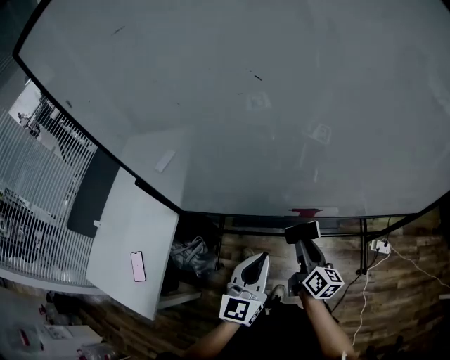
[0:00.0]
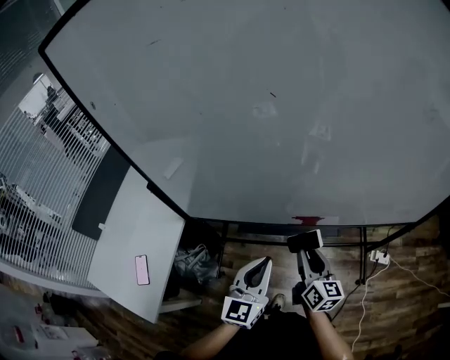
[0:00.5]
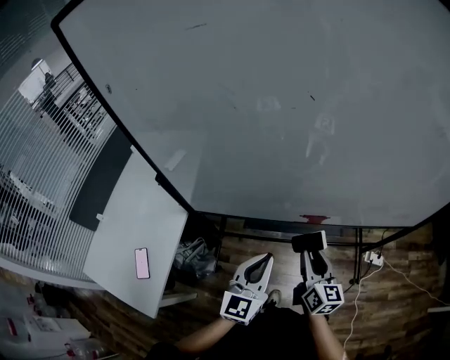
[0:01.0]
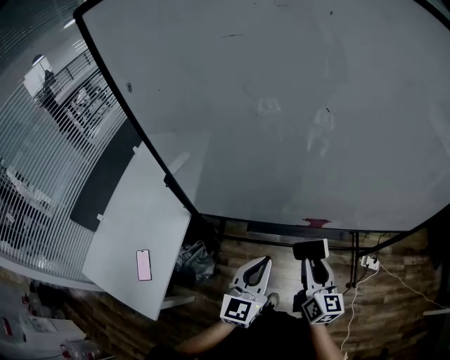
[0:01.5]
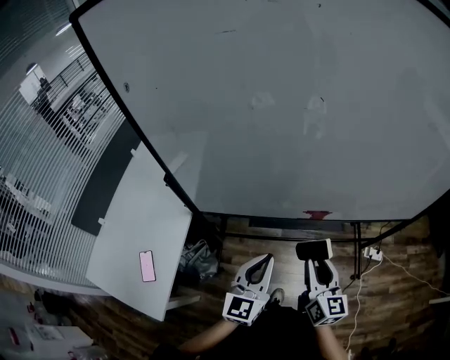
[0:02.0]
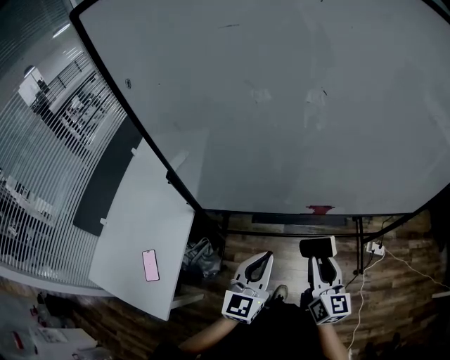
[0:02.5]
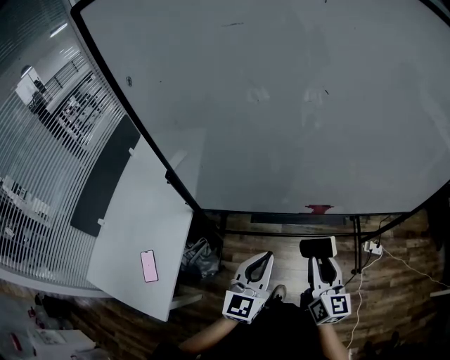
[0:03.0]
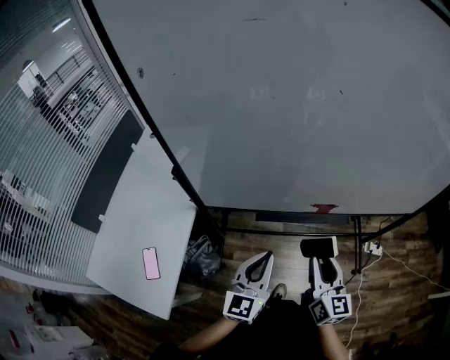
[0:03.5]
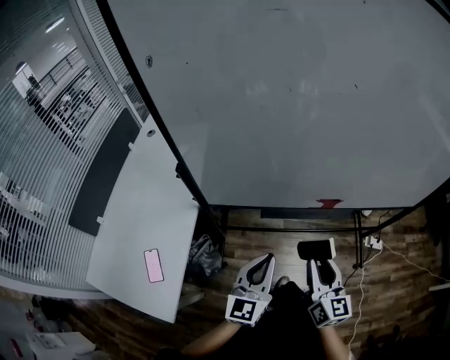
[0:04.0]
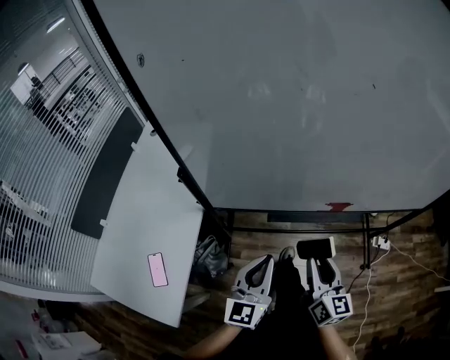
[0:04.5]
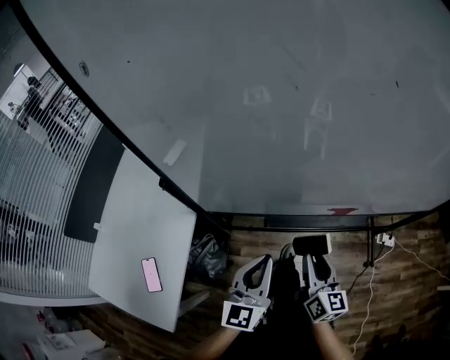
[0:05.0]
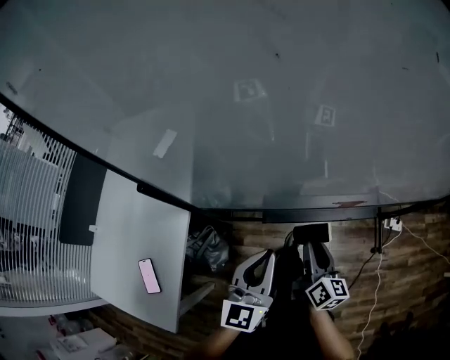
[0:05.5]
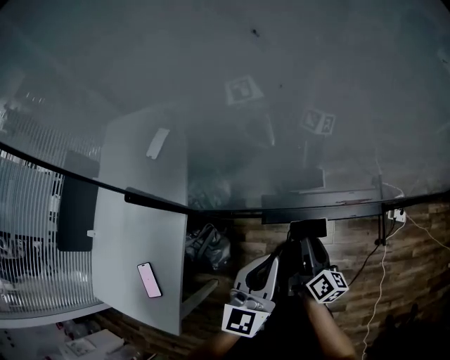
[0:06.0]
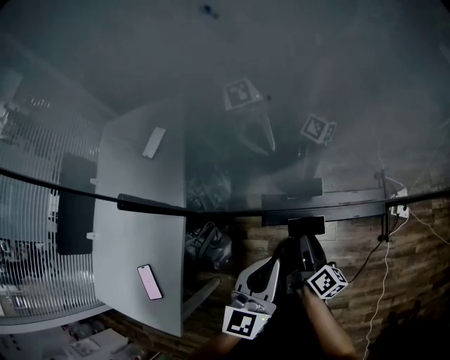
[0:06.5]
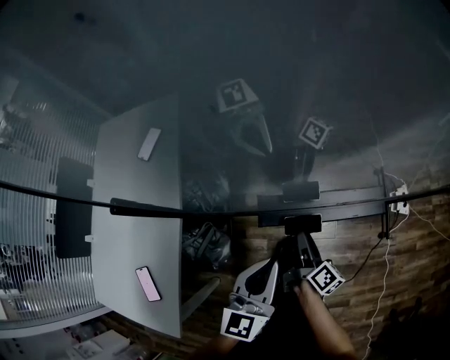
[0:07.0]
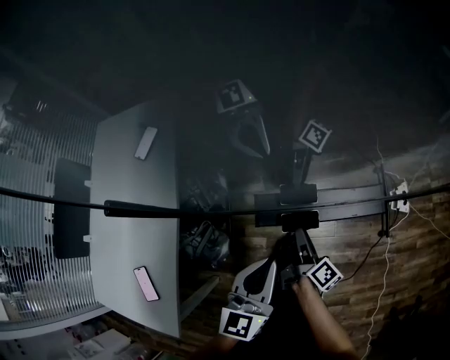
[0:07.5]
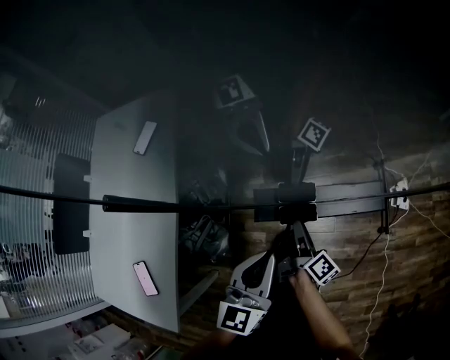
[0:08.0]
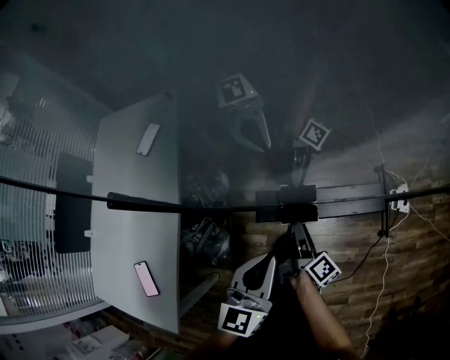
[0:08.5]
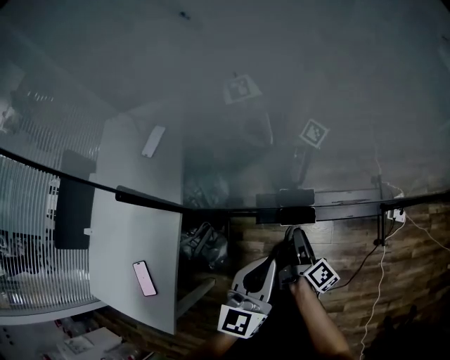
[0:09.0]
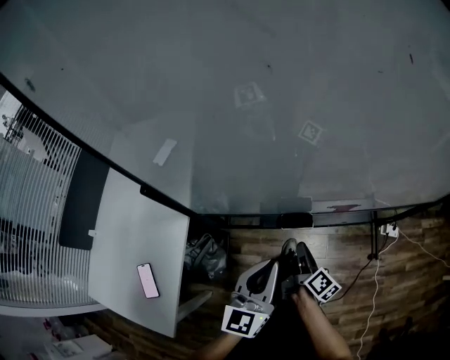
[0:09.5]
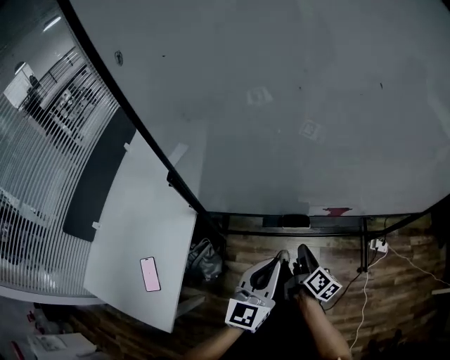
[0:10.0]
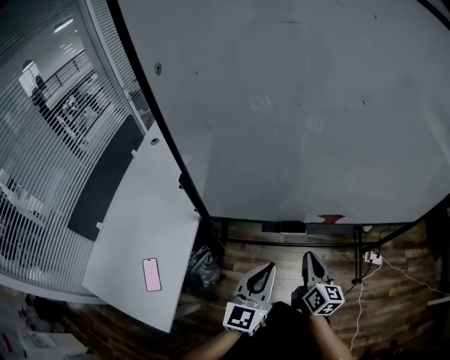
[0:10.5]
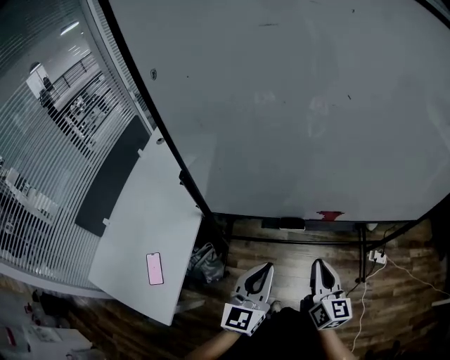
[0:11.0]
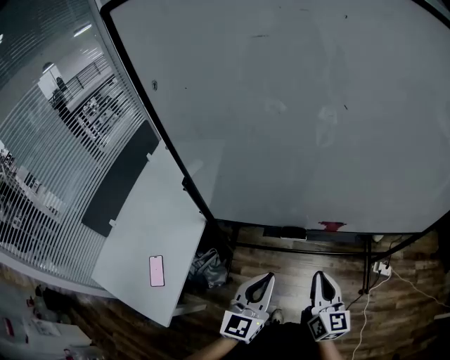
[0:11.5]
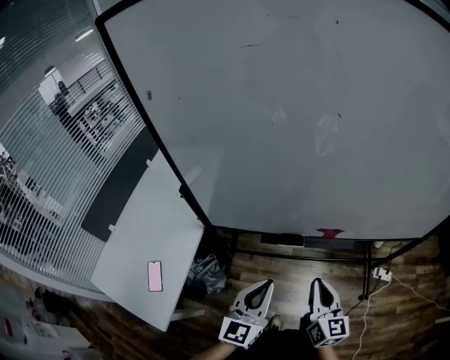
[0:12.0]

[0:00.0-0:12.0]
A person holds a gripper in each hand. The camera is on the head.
0:00.0 to 0:02.0: The right gripper travels upward and backward by approximately 15 cm, and rotates about 30 degrees; the left gripper heads to the left, covering some 5 cm.
0:02.0 to 0:04.0: Both grippers travel together to the left, roughly 5 cm.
0:04.0 to 0:06.0: The left gripper travels forward and downward by some 10 cm. The right gripper moves downward and forward, roughly 25 cm, and swivels approximately 40 degrees.
0:06.0 to 0:08.0: The right gripper moves downward, approximately 5 cm, and rotates about 20 degrees.
0:08.0 to 0:10.0: Both grippers travel together upward and backward, approximately 10 cm. The right gripper swivels roughly 20 degrees, and closes its fingers.
0:10.0 to 0:12.0: The left gripper shifts by approximately 5 cm; the right gripper travels upward and backward by roughly 15 cm, and turns by approximately 40 degrees.

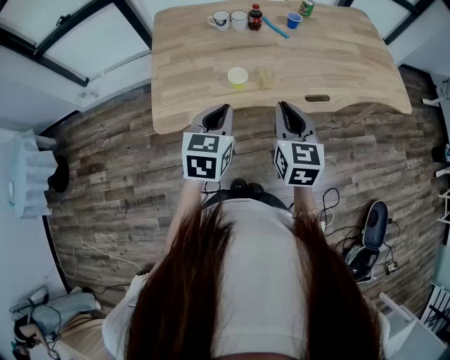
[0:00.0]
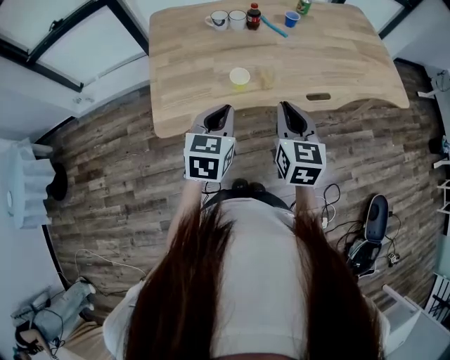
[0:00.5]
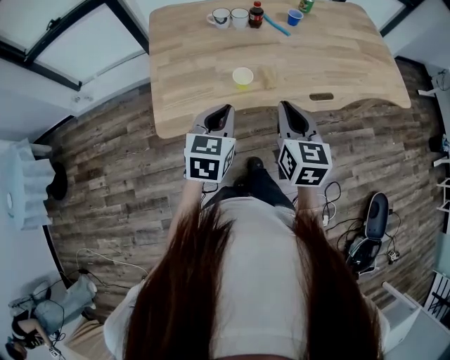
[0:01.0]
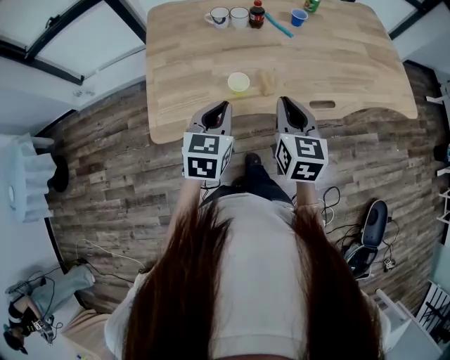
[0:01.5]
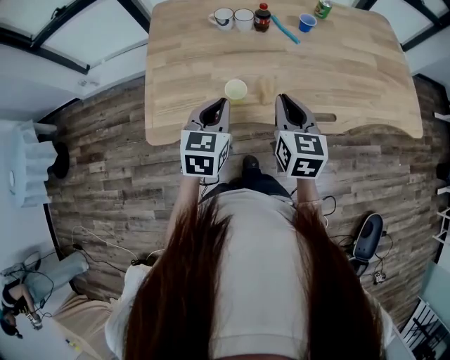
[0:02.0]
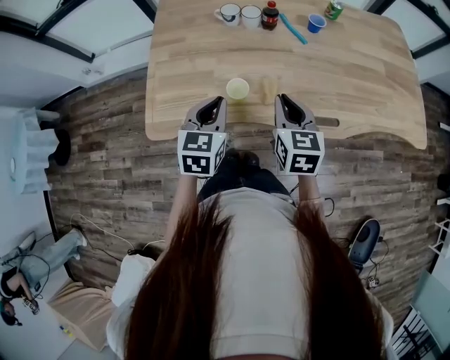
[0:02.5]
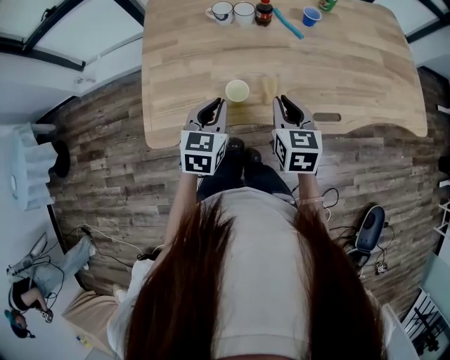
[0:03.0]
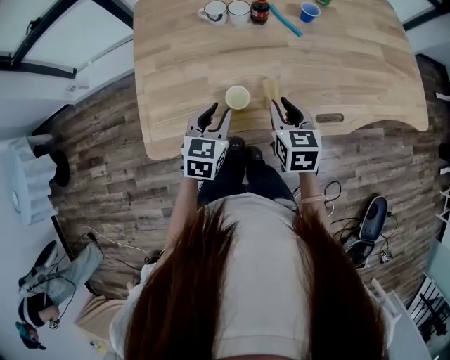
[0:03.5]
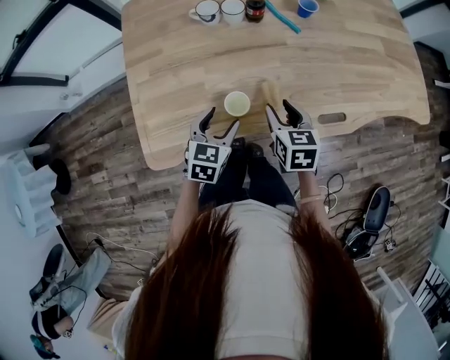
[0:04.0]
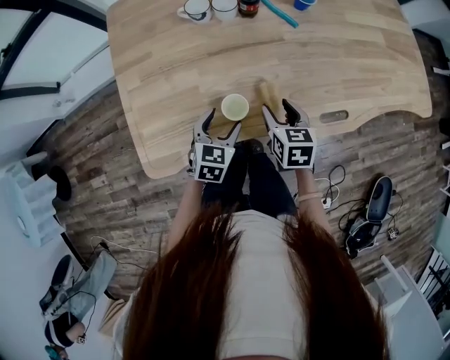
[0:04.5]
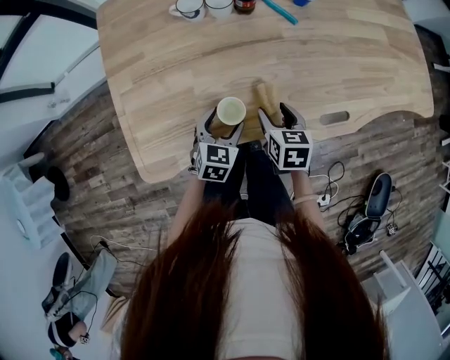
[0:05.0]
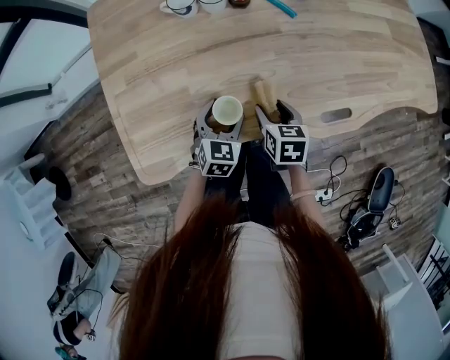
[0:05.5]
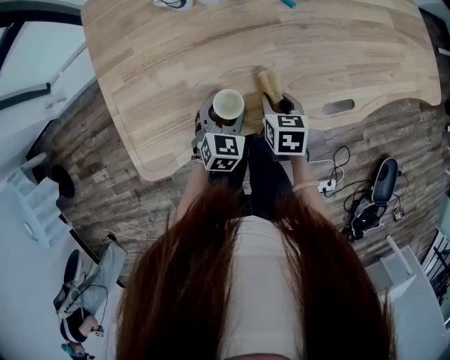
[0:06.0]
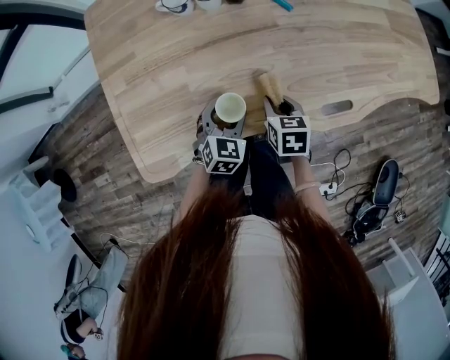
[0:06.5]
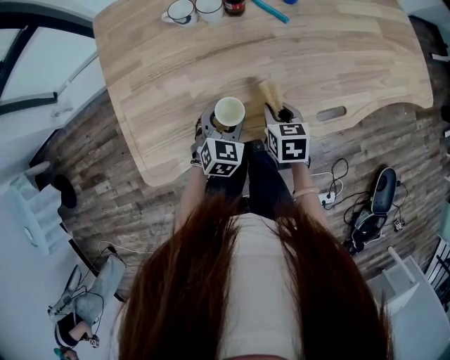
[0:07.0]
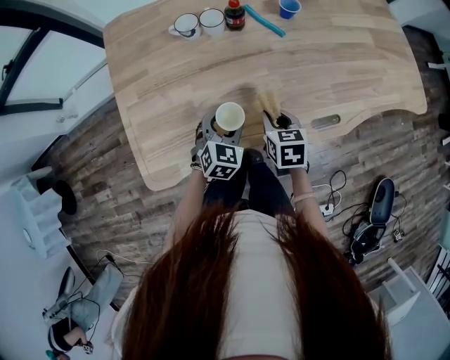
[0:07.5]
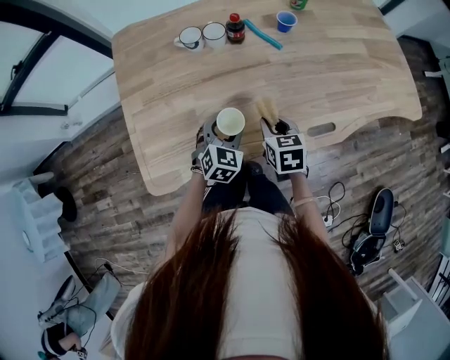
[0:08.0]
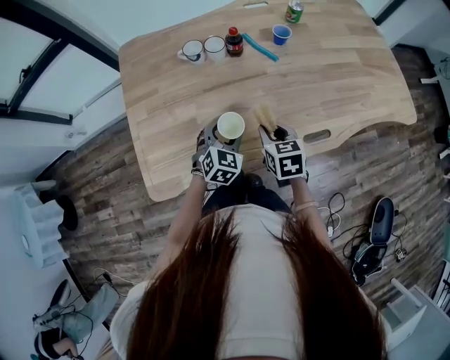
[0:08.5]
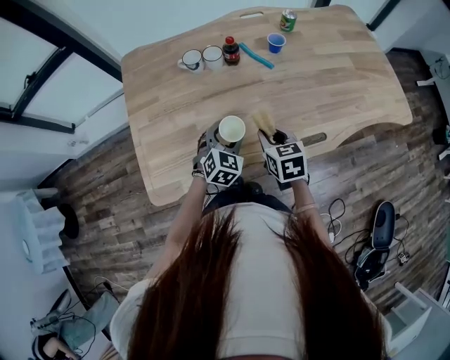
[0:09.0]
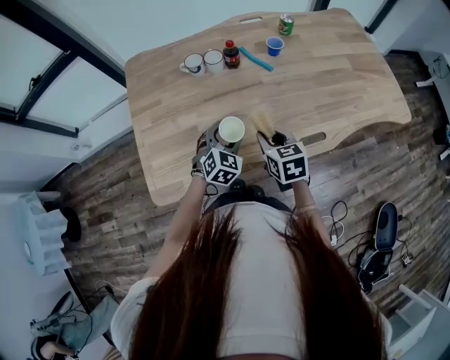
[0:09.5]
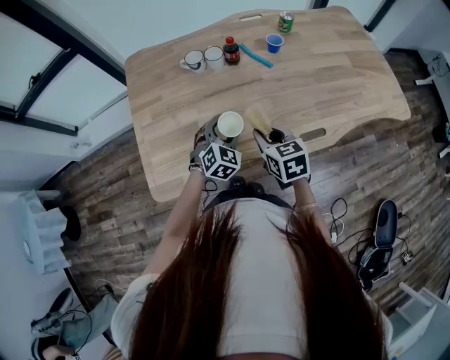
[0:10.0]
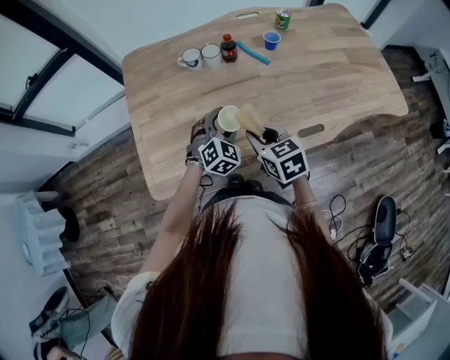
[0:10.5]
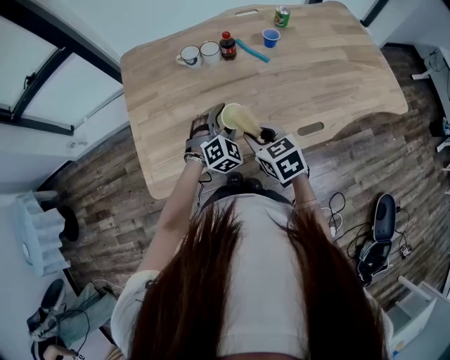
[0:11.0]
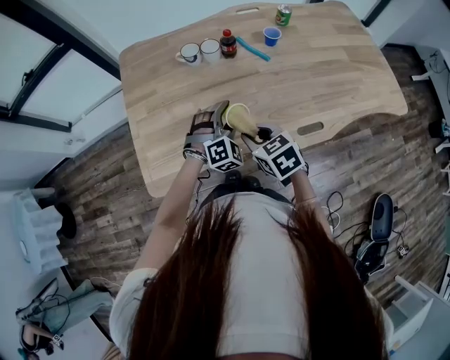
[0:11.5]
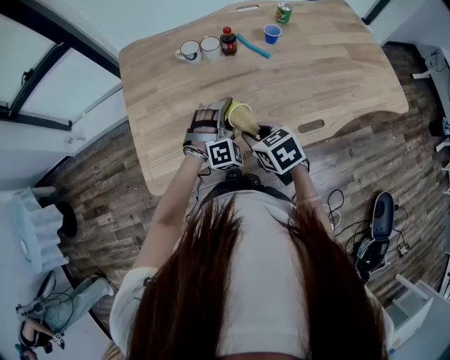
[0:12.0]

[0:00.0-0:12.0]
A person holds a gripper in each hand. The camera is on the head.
0:00.0 to 0:02.0: The grippers both shift forward by roughly 10 cm.
0:02.0 to 0:04.0: Both grippers travel together downward and forward, approximately 15 cm. The right gripper opens, while the left gripper opens up.
0:04.0 to 0:06.0: Both grippers travel together downward, some 10 cm.
0:06.0 to 0:08.0: Both grippers travel together upward, roughly 10 cm.
0:08.0 to 0:10.0: The right gripper heads upward, covering some 5 cm.
0:10.0 to 0:12.0: The left gripper turns by some 40 degrees.

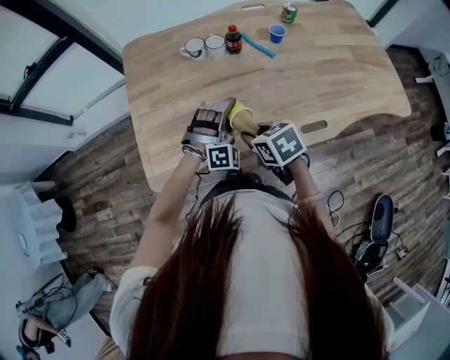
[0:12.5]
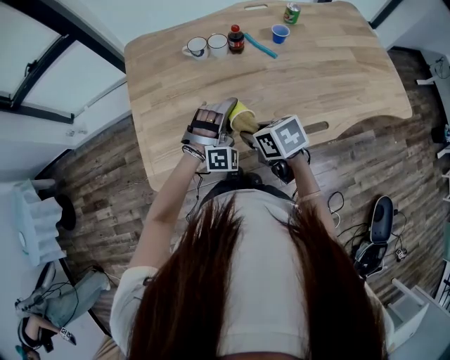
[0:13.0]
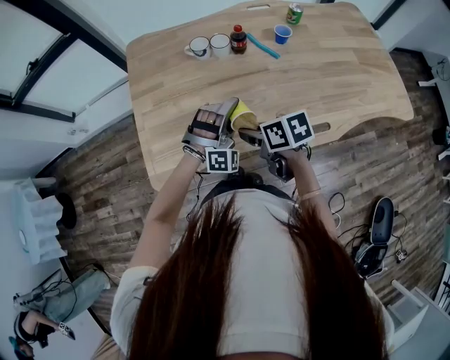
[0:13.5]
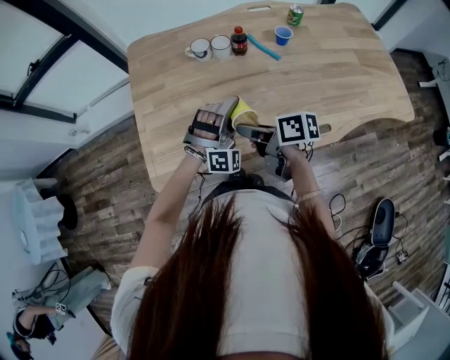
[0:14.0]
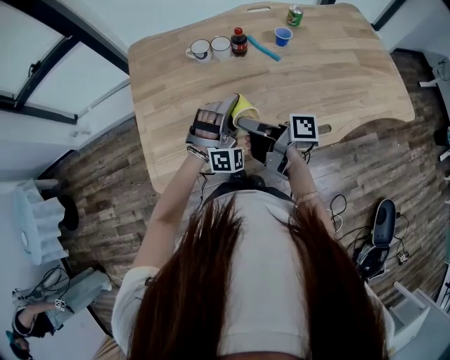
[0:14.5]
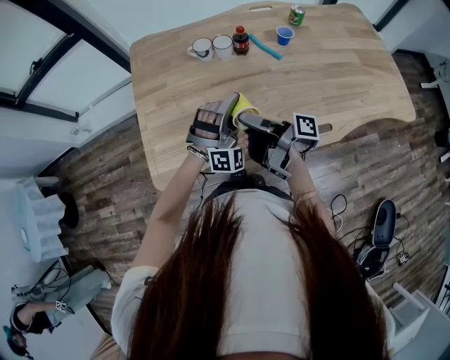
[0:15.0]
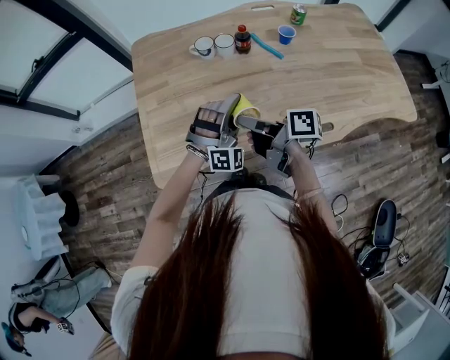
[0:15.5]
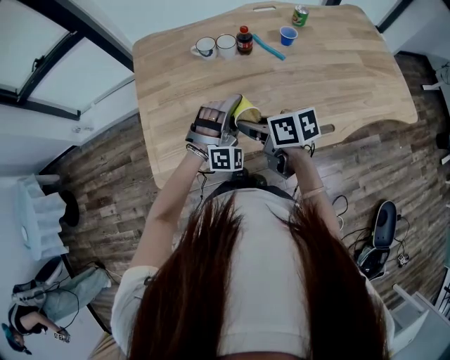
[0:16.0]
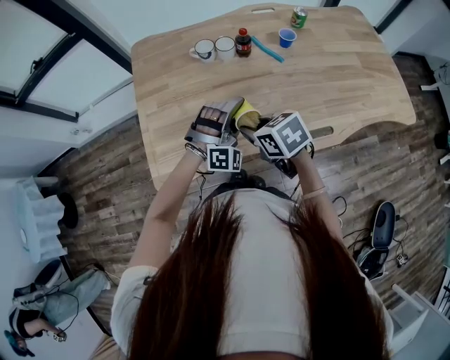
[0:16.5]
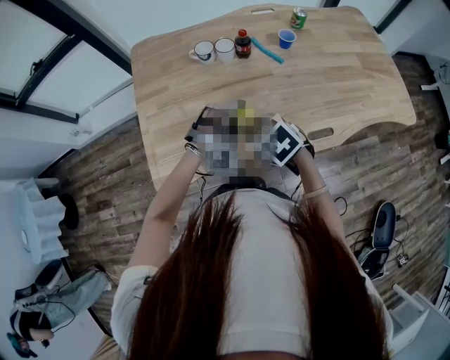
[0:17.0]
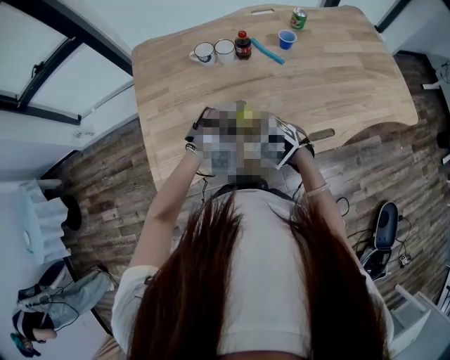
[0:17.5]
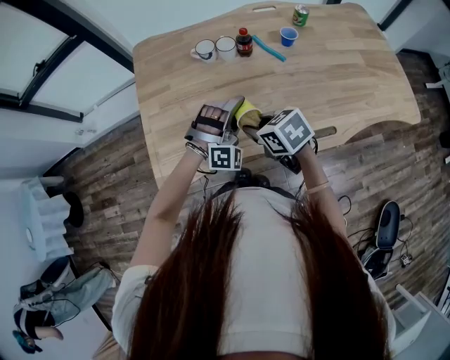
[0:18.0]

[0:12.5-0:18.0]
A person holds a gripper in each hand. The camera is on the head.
0:12.5 to 0:14.5: The right gripper goes roughly 5 cm upward, and tilts its fingers approximately 50 degrees upward.
0:14.5 to 0:16.0: The right gripper turns by some 50 degrees.
0:16.0 to 0:18.0: The right gripper turns by approximately 30 degrees.
